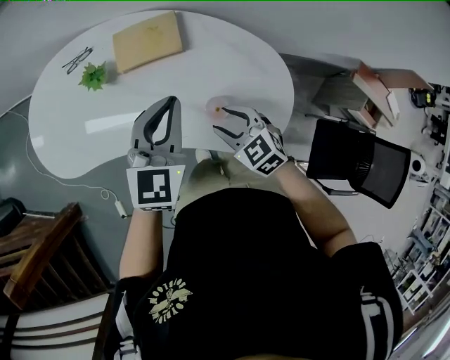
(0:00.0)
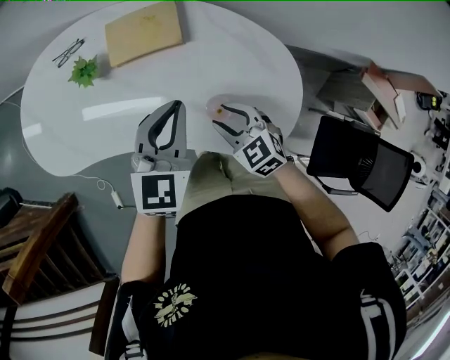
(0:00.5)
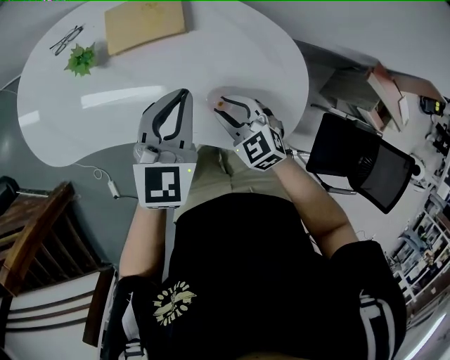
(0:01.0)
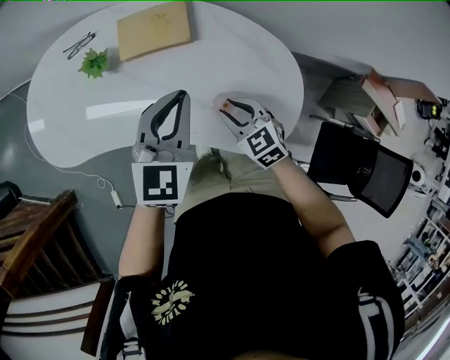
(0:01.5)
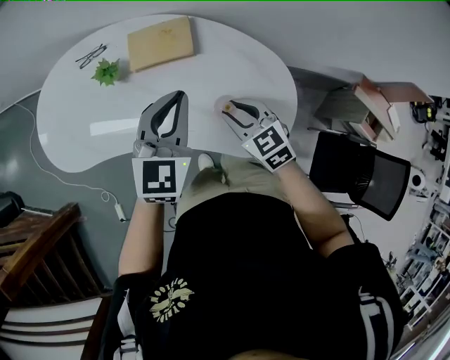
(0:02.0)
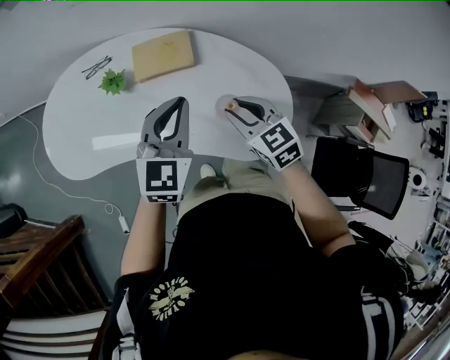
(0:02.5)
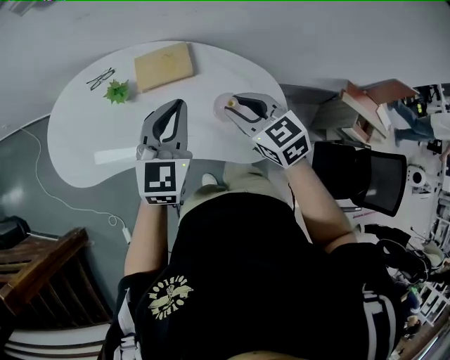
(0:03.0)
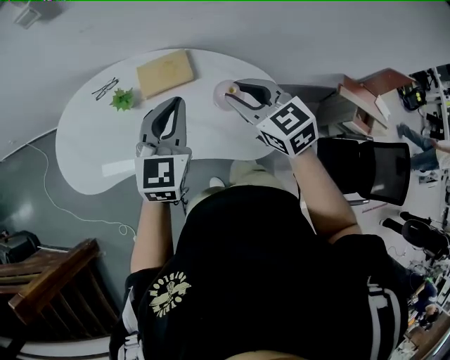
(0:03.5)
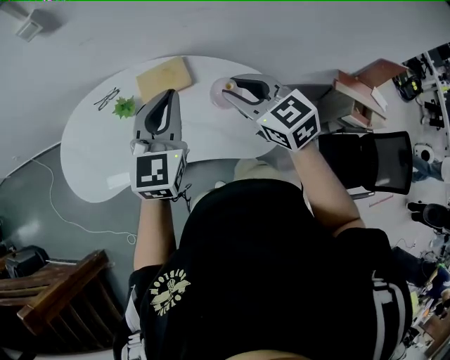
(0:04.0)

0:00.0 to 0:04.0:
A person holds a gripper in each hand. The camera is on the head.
0:00.0 to 0:02.0: The left gripper goes downward and returns, about 5 cm each way.
0:02.0 to 0:04.0: The left gripper heads upward, covering about 15 cm. Meanwhile the right gripper moves upward, approximately 25 cm.

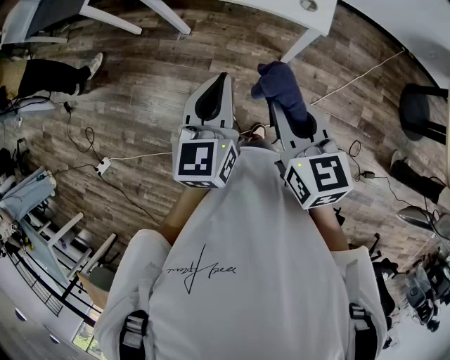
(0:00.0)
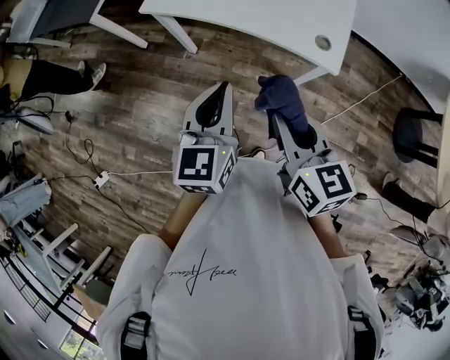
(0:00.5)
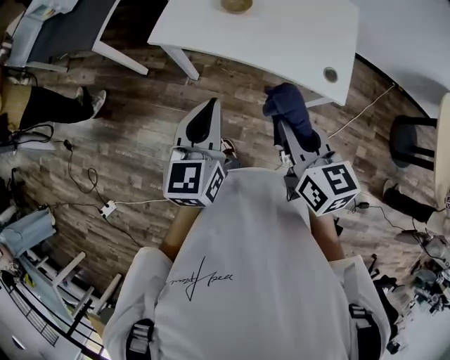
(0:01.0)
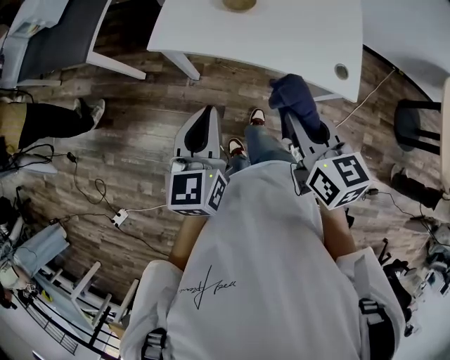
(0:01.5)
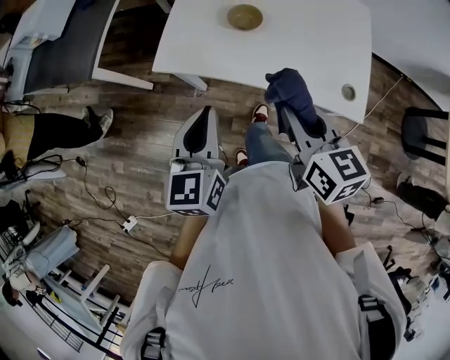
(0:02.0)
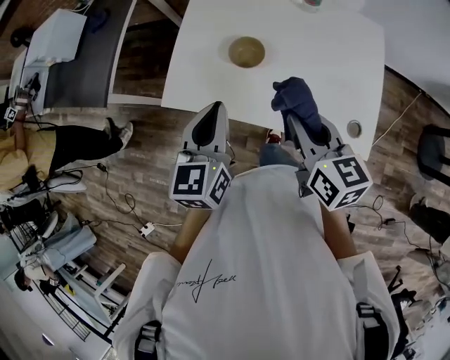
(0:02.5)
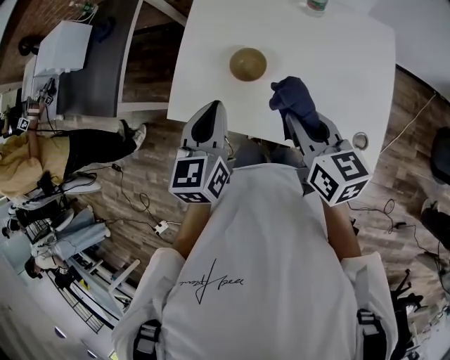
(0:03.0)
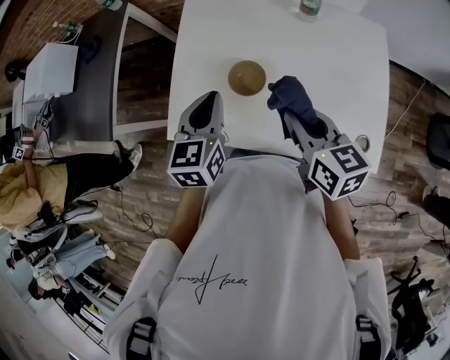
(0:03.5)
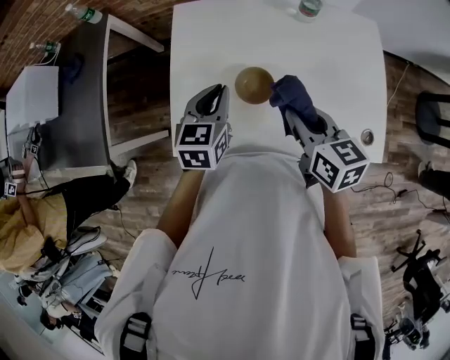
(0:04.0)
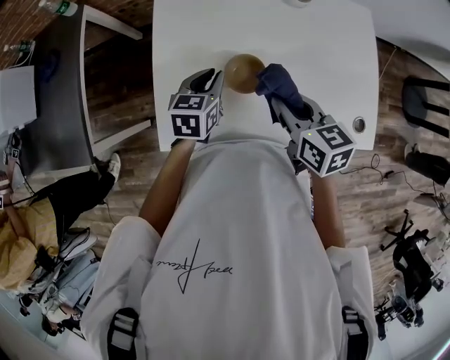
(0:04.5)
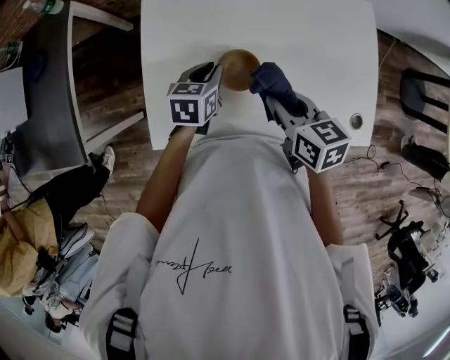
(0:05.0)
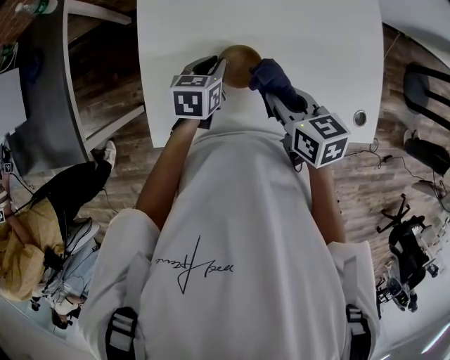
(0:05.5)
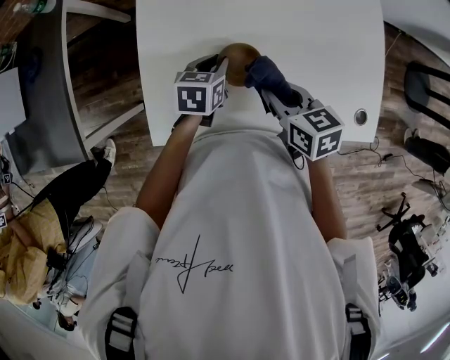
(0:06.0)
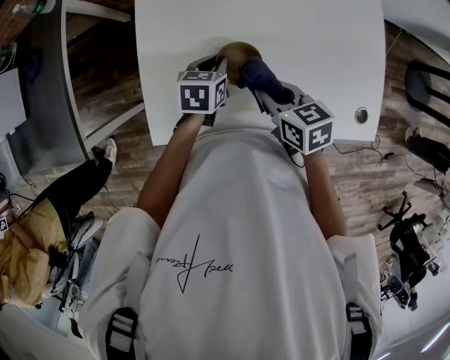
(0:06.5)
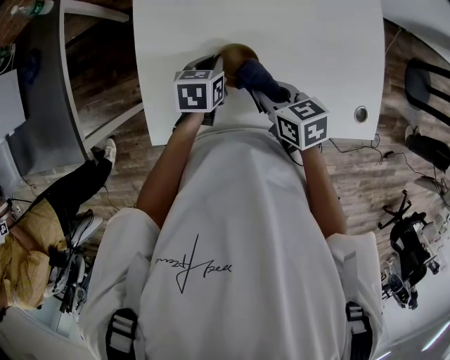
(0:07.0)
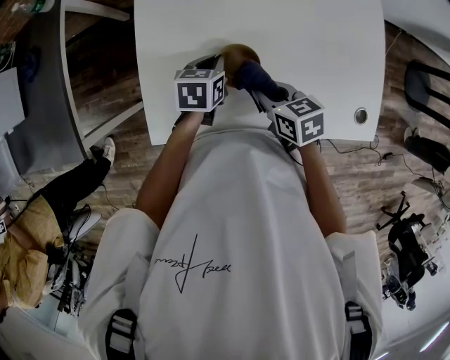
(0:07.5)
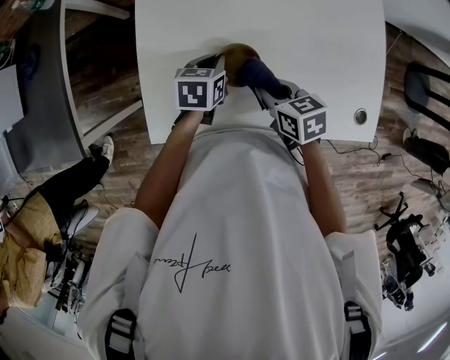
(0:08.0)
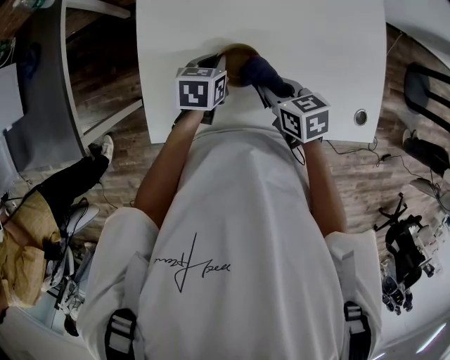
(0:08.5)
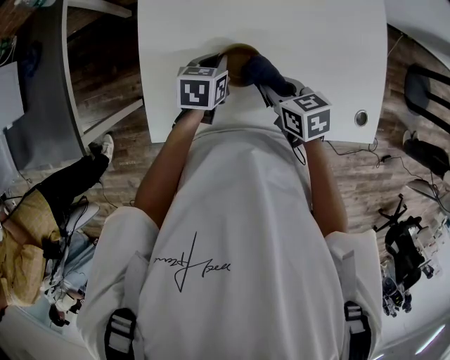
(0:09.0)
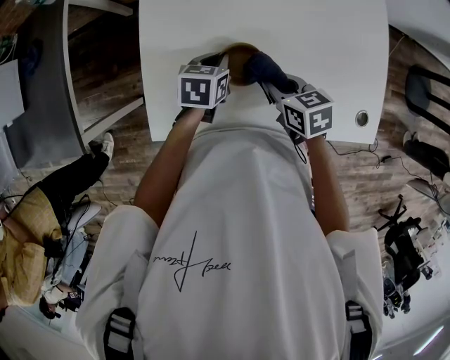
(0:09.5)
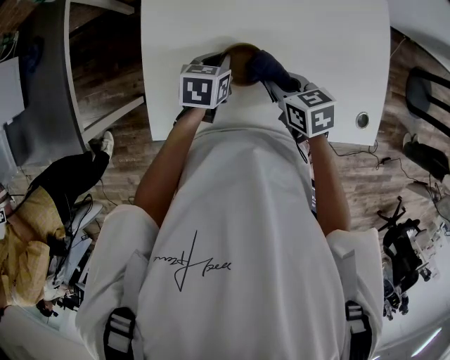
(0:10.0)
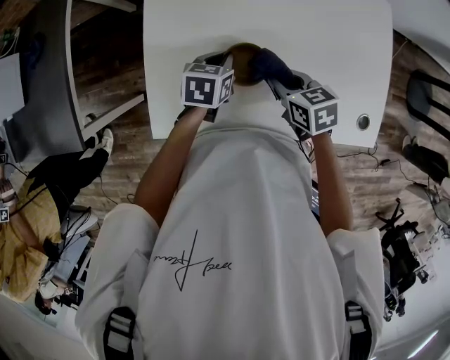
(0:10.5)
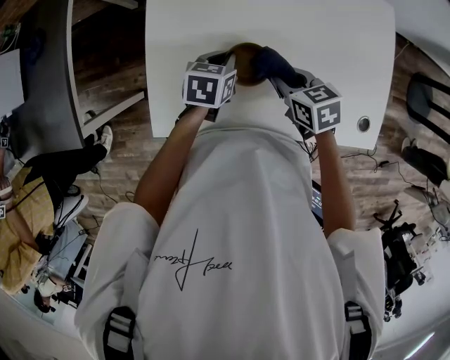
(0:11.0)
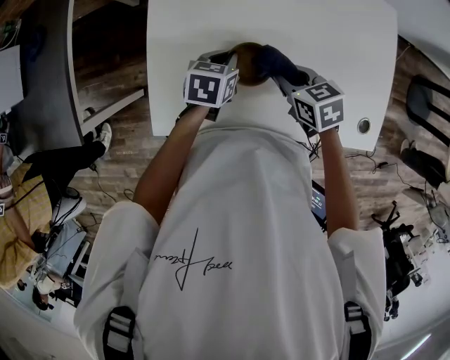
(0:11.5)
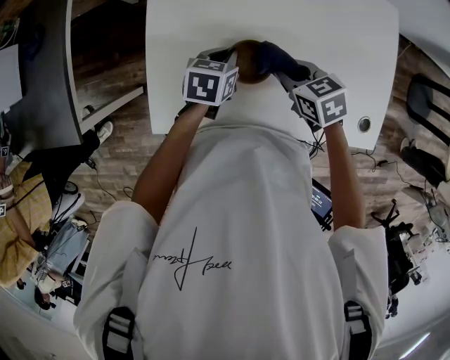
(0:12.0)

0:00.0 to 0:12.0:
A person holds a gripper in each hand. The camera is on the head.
0:00.0 to 0:02.0: The left gripper travels forward and to the left by some 35 cm, while the right gripper goes roughly 30 cm forward.
0:02.0 to 0:04.0: Both grippers travel together forward, roughly 25 cm. The left gripper turns by approximately 30 degrees.
0:04.0 to 0:06.0: Both grippers travel together downward, roughly 10 cm. The left gripper changes its angle by about 20 degrees.
0:06.0 to 0:08.0: The right gripper heads downward, covering roughly 5 cm.
0:08.0 to 0:12.0: There are only small adjustments of the grippers.

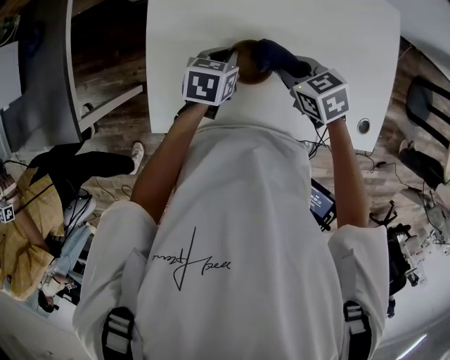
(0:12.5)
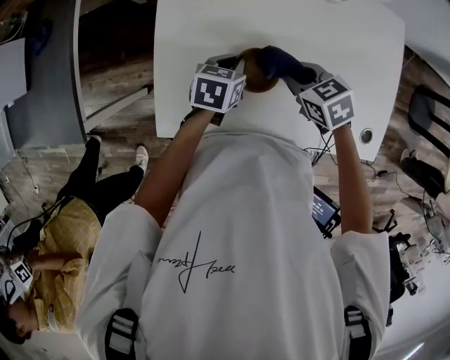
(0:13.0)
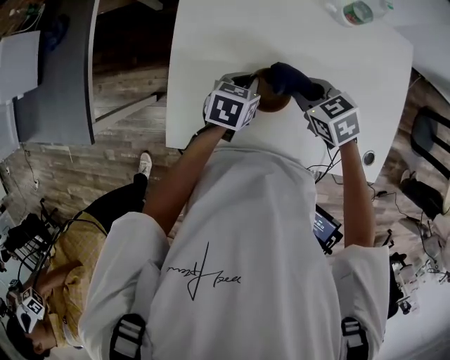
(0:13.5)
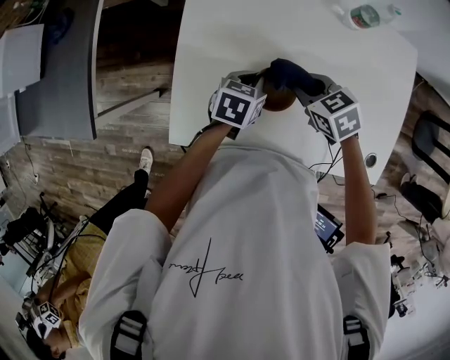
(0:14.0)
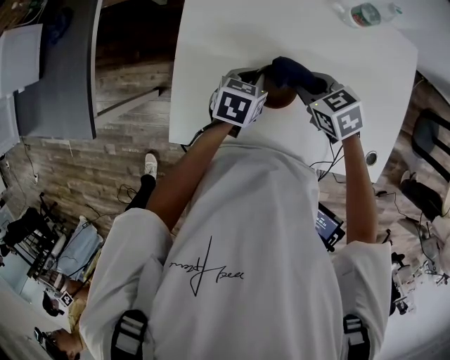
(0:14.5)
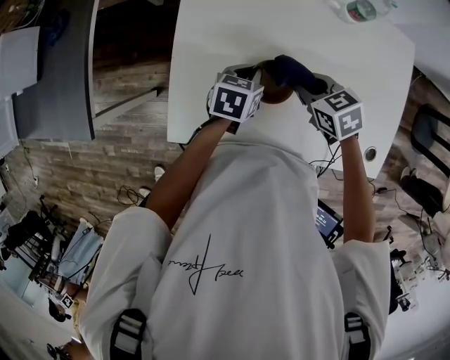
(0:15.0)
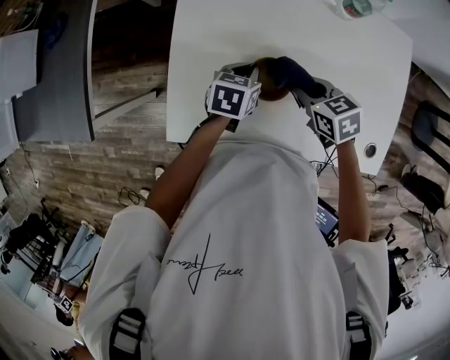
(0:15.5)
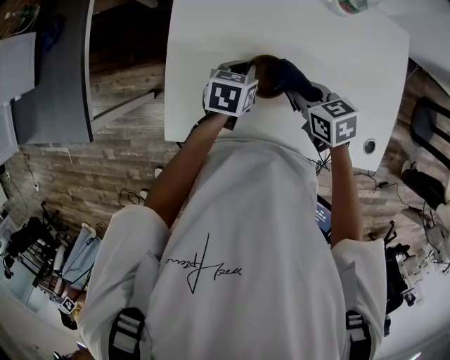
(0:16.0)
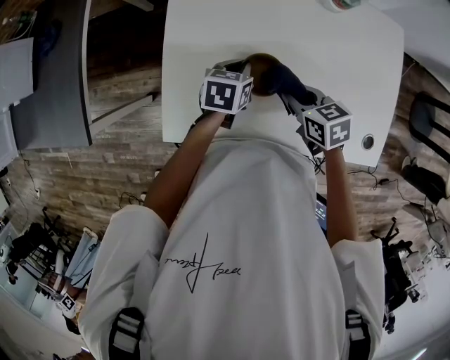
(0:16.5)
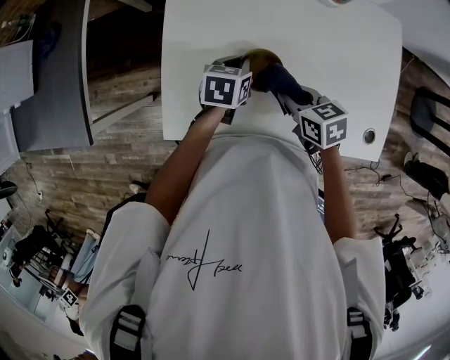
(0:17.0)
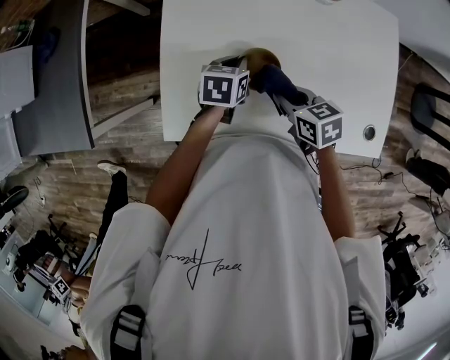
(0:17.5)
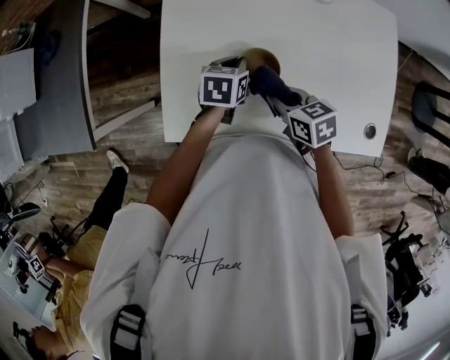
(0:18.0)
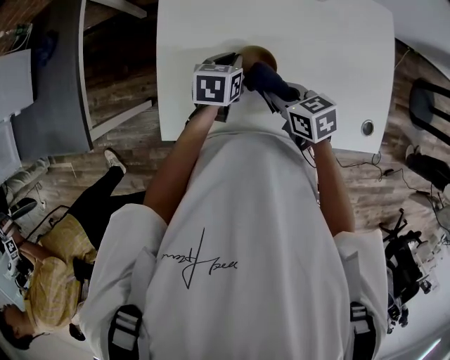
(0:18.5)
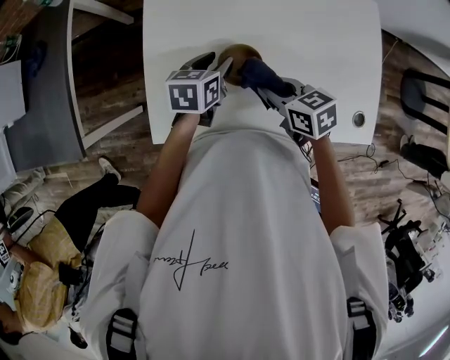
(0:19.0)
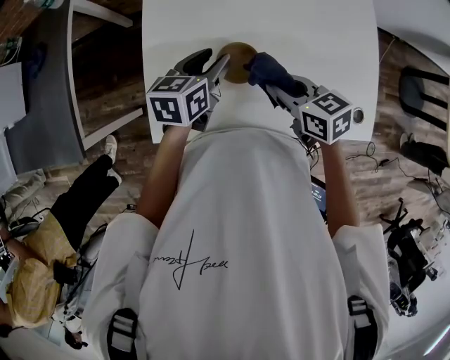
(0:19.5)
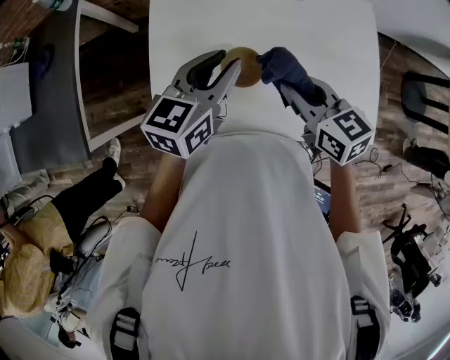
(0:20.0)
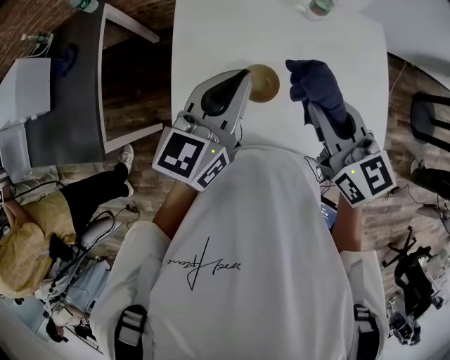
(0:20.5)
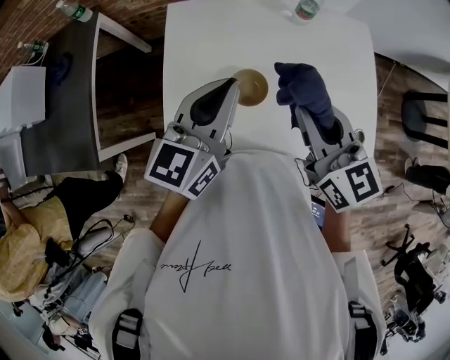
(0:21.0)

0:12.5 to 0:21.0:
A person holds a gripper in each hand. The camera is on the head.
0:12.5 to 0:14.5: There are only small adjustments of the grippers.
0:14.5 to 0:16.5: The right gripper travels backward by roughly 5 cm.
0:16.5 to 0:19.0: The left gripper opens its fingers.
0:19.0 to 0:21.0: The two grippers go some 25 cm upward. The right gripper rotates some 40 degrees. The left gripper angles its fingers upward, by about 40 degrees, and closes its fingers.

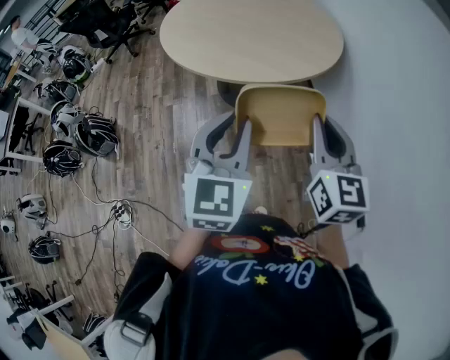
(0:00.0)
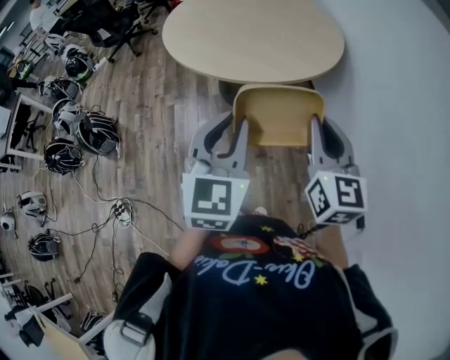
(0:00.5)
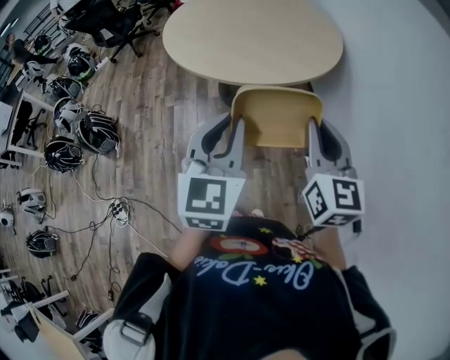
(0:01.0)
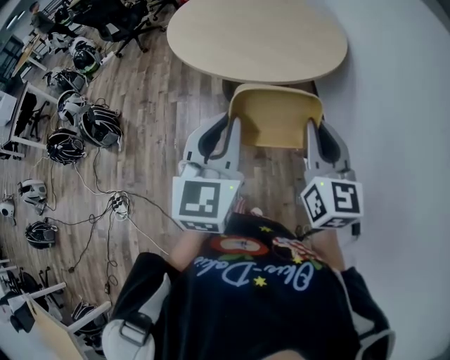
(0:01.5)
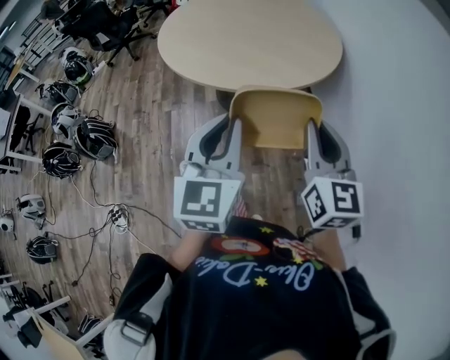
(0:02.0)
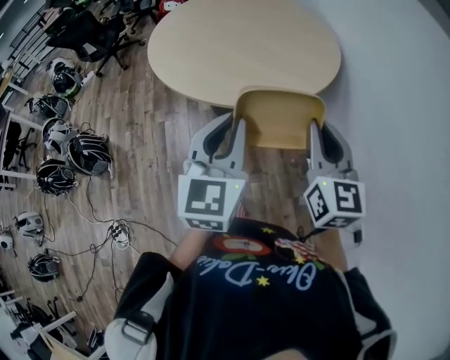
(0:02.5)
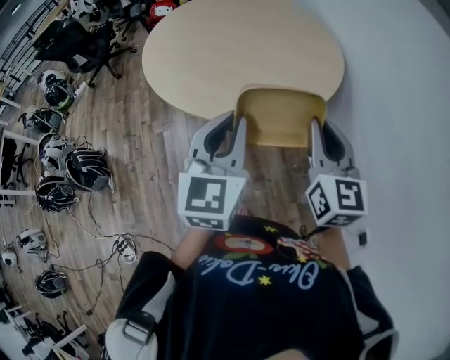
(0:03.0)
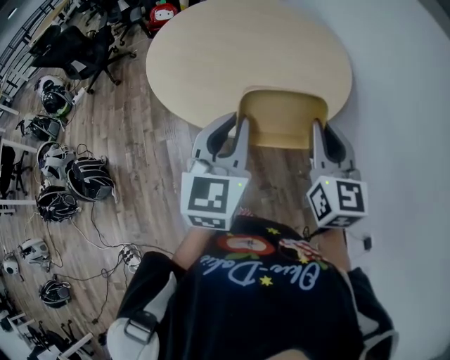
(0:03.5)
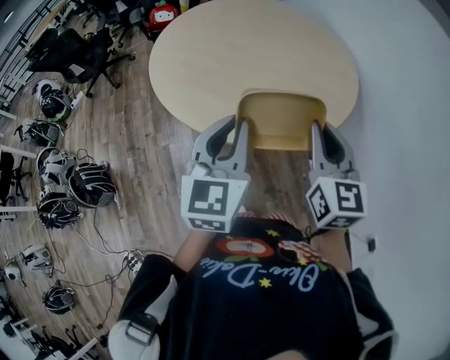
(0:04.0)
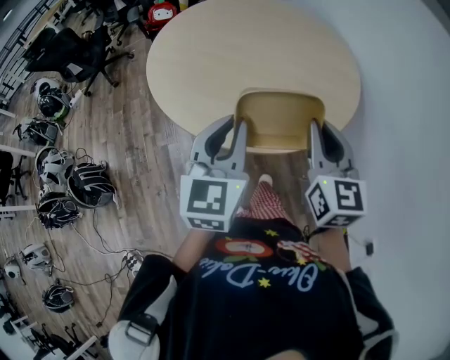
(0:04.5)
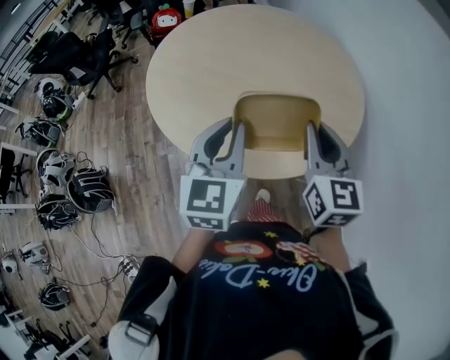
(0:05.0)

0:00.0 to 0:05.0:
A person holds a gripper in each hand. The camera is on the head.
0:00.0 to 0:02.5: The grippers both shift forward by some 10 cm.
0:02.5 to 0:05.0: The two grippers go about 30 cm forward and to the left.
